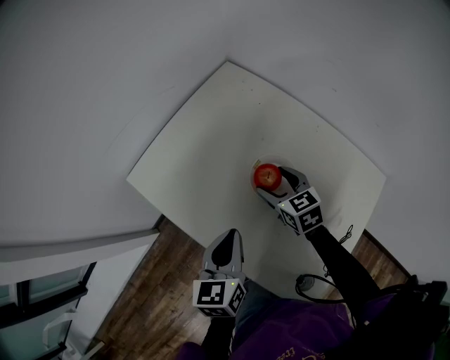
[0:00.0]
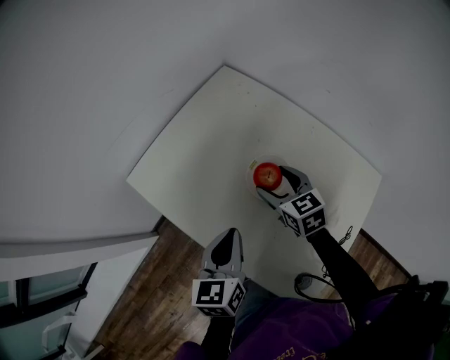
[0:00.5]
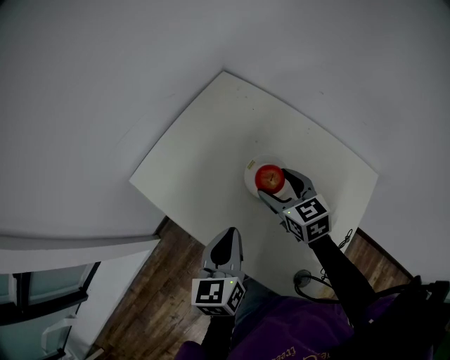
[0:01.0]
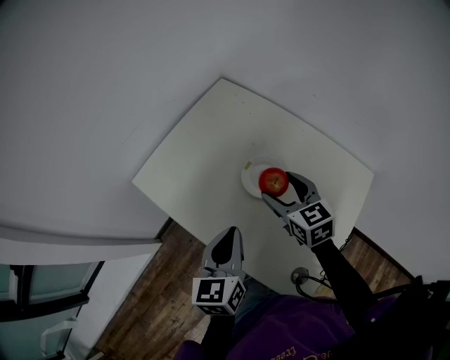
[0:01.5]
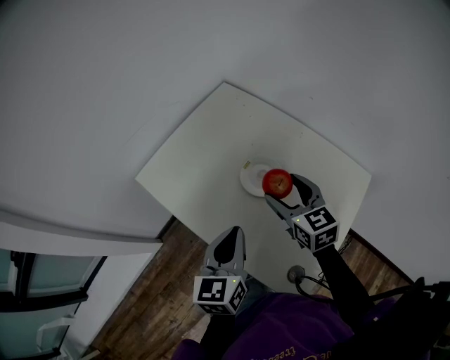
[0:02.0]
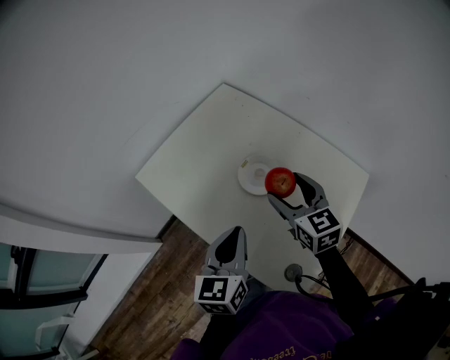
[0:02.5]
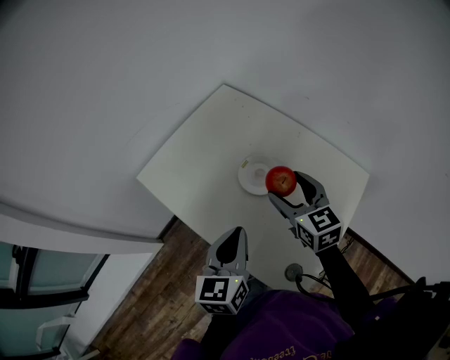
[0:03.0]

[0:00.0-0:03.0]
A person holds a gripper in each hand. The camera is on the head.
0:00.0 to 0:01.5: The right gripper moves upward and backward, some 10 cm. Meanwhile the left gripper moves roughly 5 cm.
0:01.5 to 0:03.0: The right gripper moves about 5 cm.

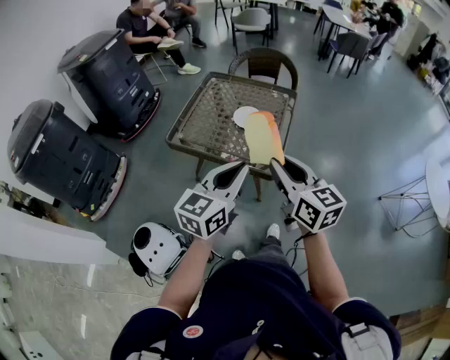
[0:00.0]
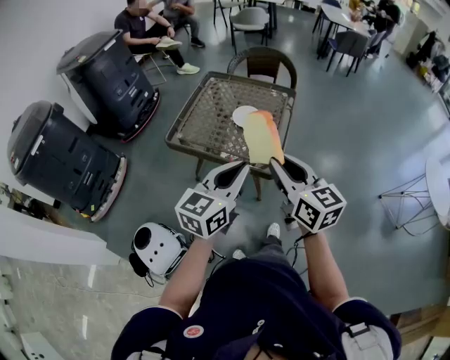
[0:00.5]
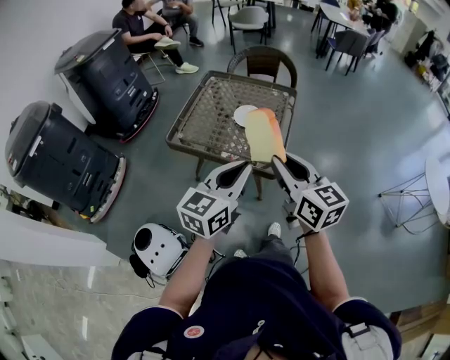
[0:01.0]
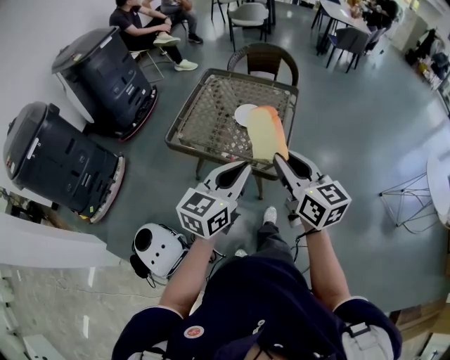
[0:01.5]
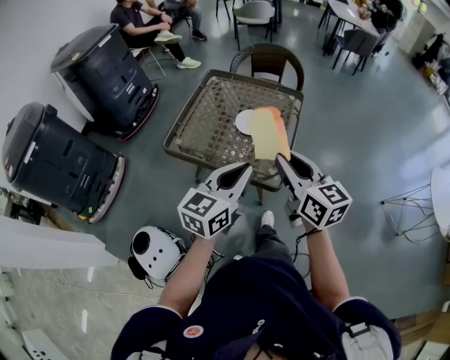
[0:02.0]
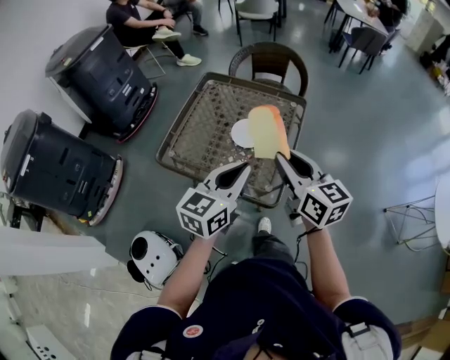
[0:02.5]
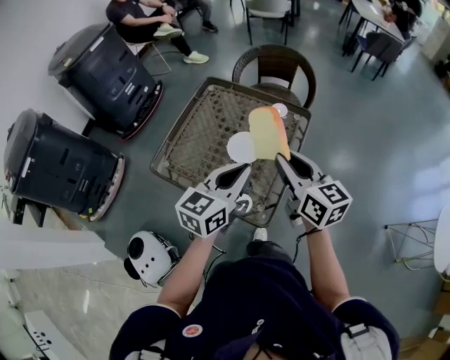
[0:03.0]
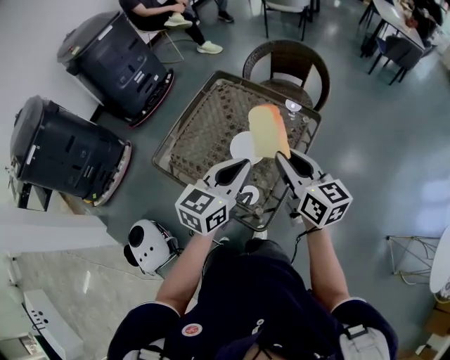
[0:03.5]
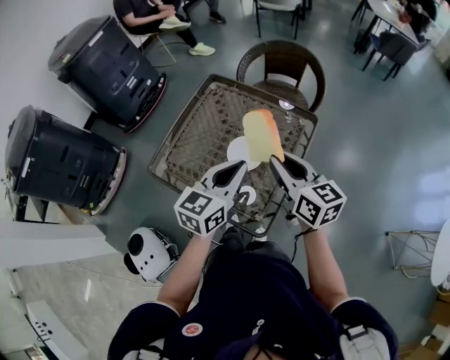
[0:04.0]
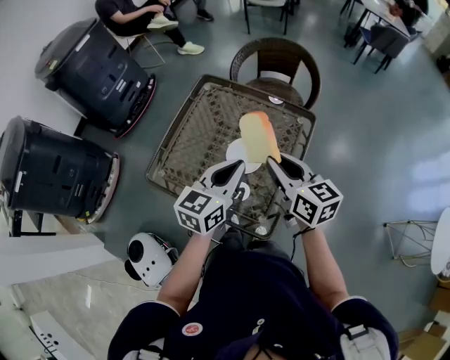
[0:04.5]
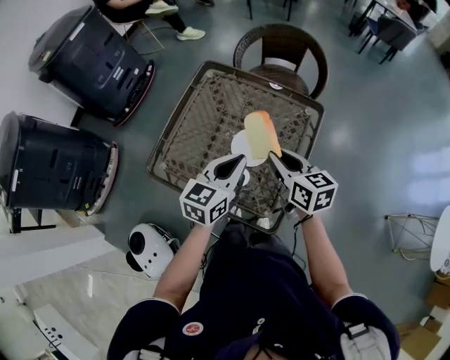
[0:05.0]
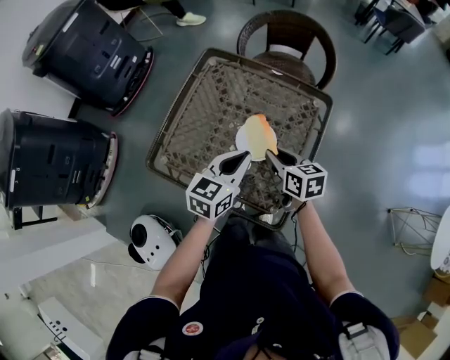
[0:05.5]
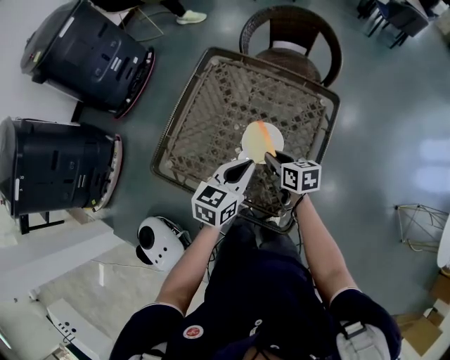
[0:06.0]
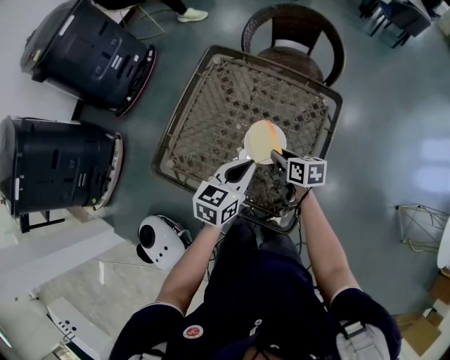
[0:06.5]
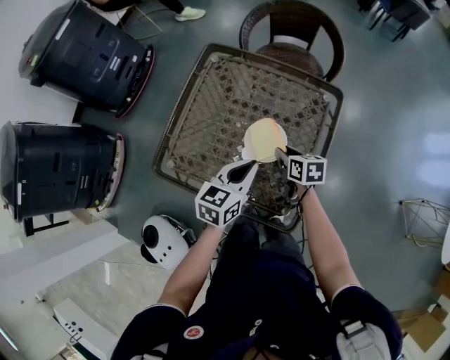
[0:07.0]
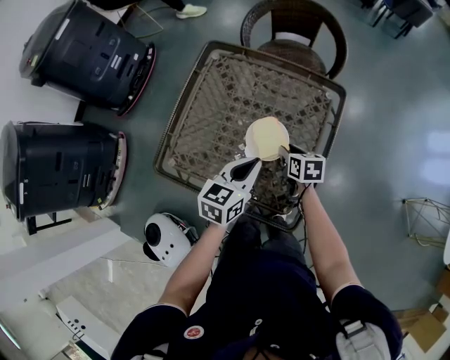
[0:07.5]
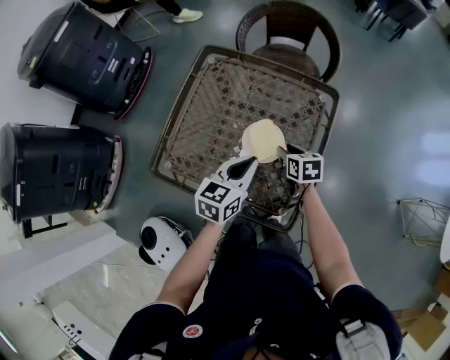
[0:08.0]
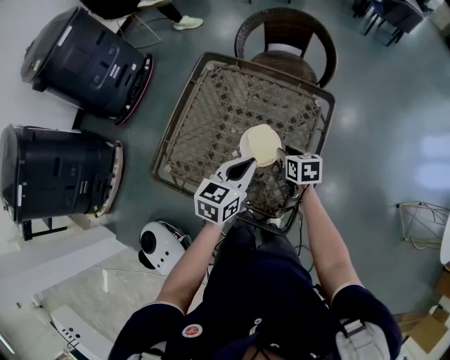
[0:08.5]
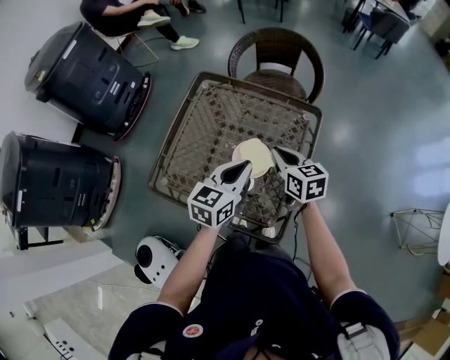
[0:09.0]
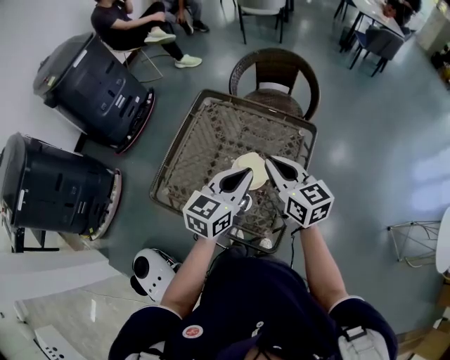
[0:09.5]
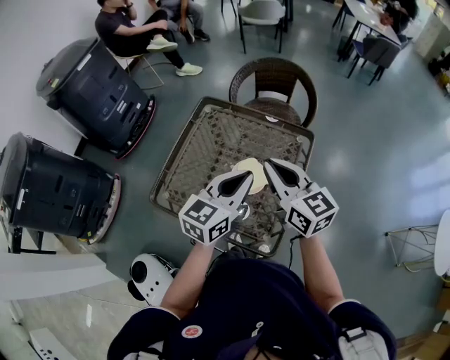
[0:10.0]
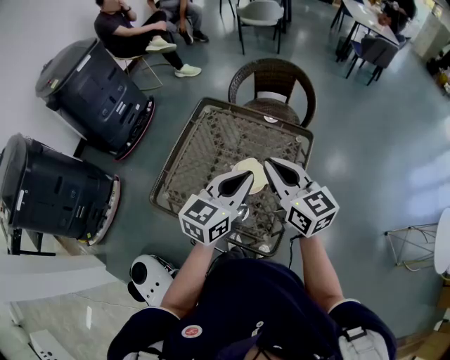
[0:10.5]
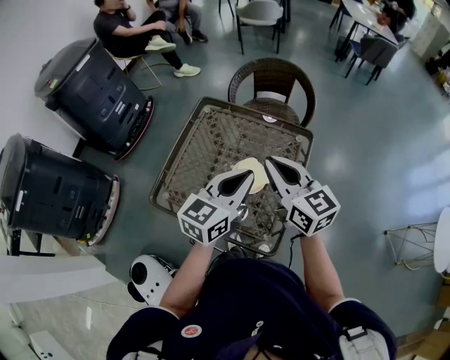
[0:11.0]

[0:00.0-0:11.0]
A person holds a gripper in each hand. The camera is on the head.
0:00.0 to 0:02.0: Both grippers travel together forward, some 10 cm.
0:02.0 to 0:03.5: Both grippers move forward, approximately 25 cm.
0:03.5 to 0:05.5: The right gripper goes roughly 20 cm downward, and changes its angle by about 30 degrees. The left gripper is displaced downward, forward and to the left by some 15 cm.
0:05.5 to 0:07.5: The right gripper shifts approximately 10 cm downward.
0:07.5 to 0:09.0: The left gripper is displaced upward by about 5 cm. The right gripper travels upward by approximately 15 cm, turns by about 20 degrees, and closes its fingers.
0:09.0 to 0:11.0: The right gripper is displaced upward by approximately 20 cm, and turns by some 30 degrees, while the left gripper goes about 10 cm upward.

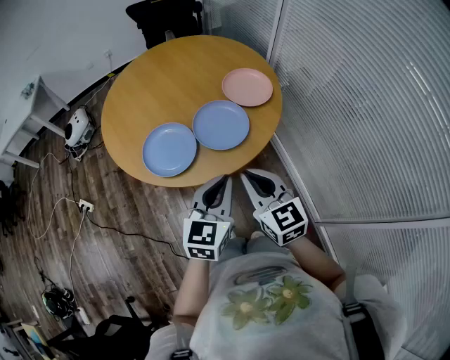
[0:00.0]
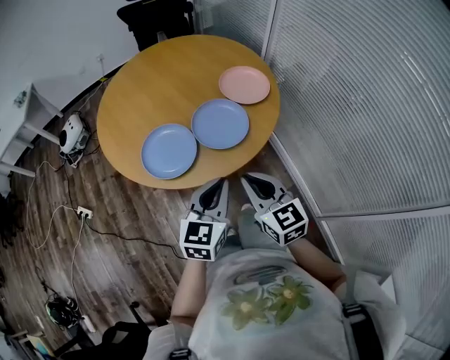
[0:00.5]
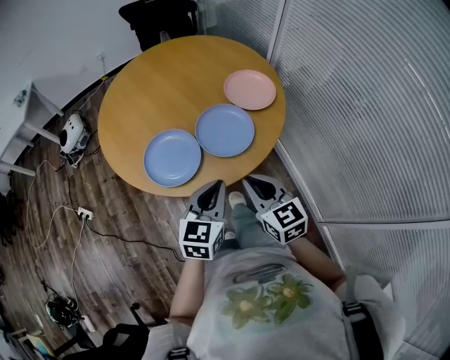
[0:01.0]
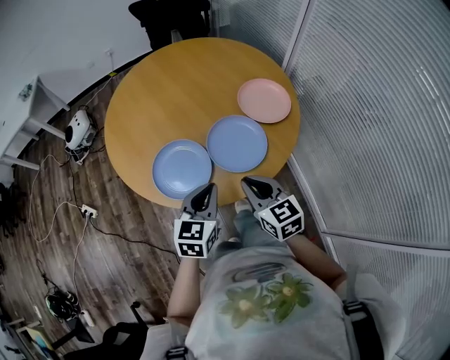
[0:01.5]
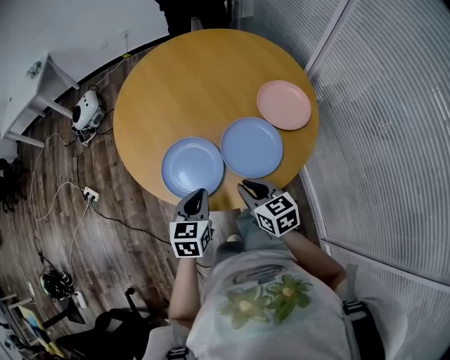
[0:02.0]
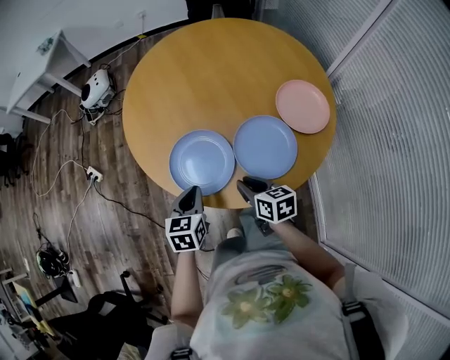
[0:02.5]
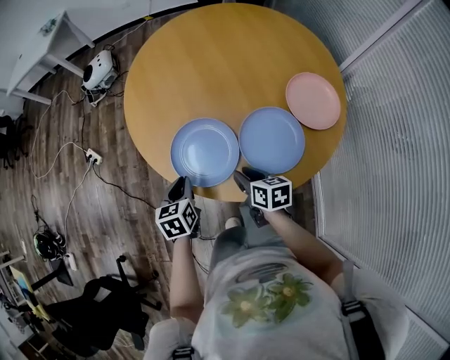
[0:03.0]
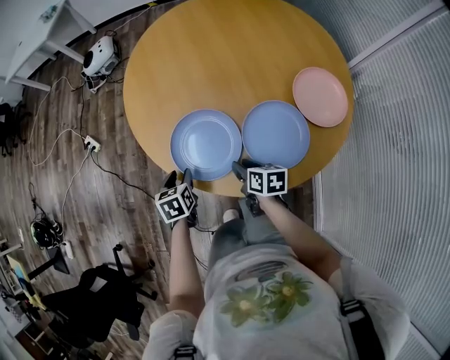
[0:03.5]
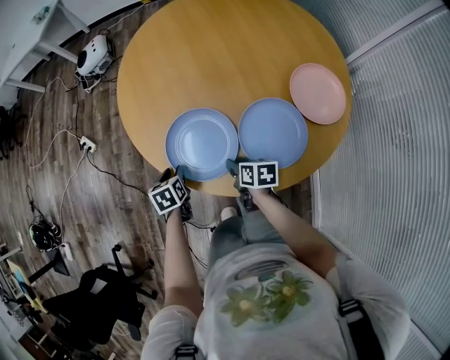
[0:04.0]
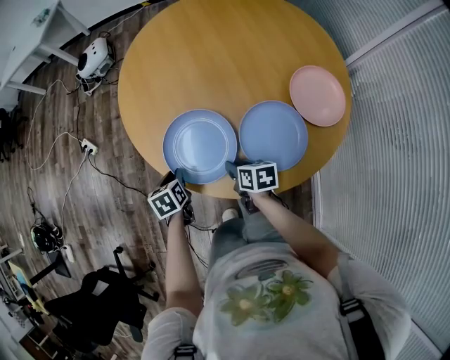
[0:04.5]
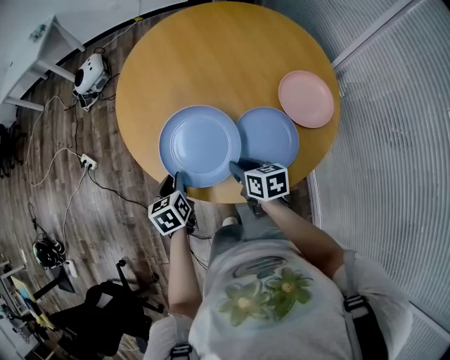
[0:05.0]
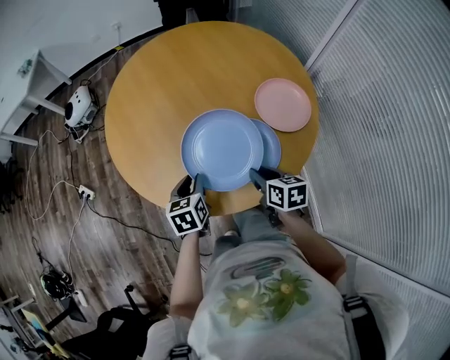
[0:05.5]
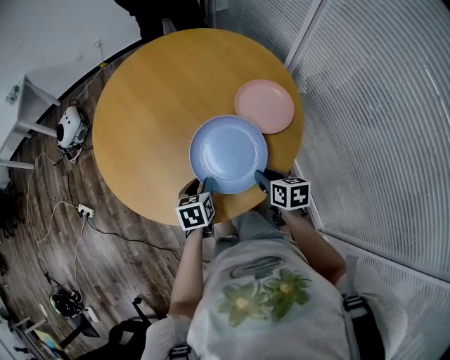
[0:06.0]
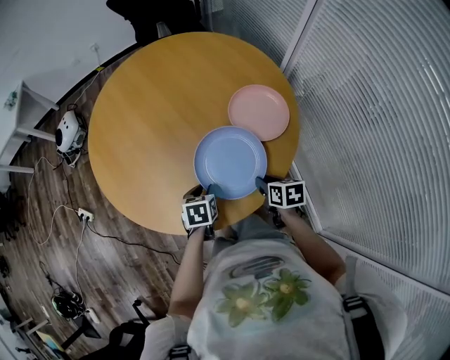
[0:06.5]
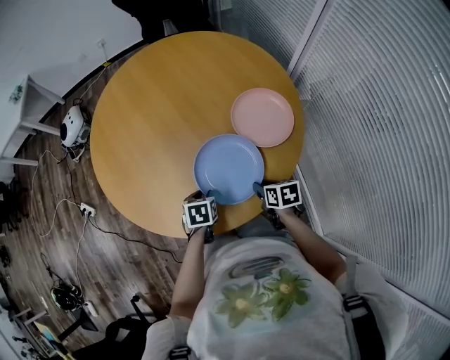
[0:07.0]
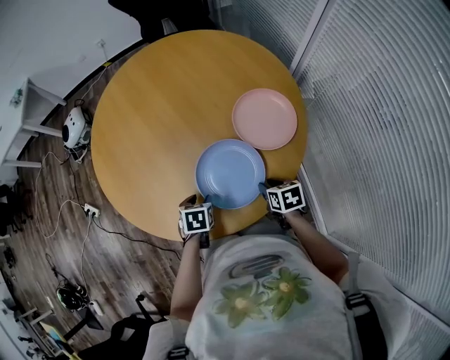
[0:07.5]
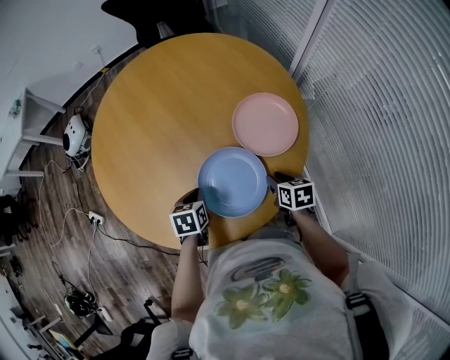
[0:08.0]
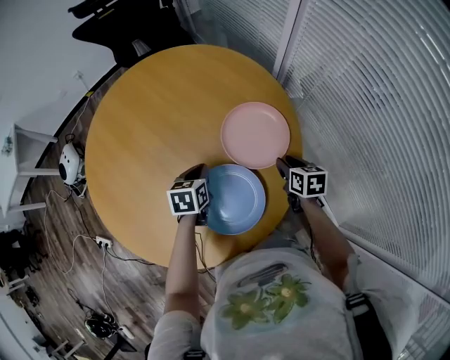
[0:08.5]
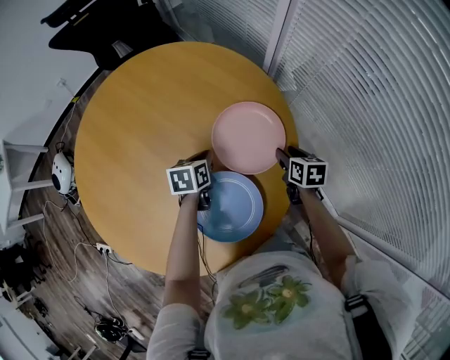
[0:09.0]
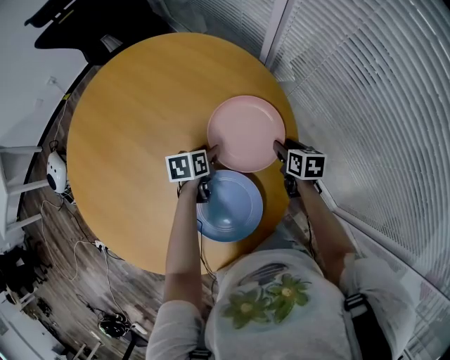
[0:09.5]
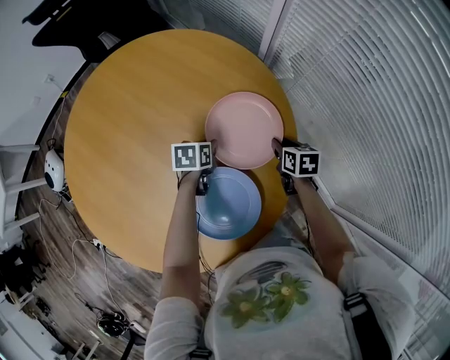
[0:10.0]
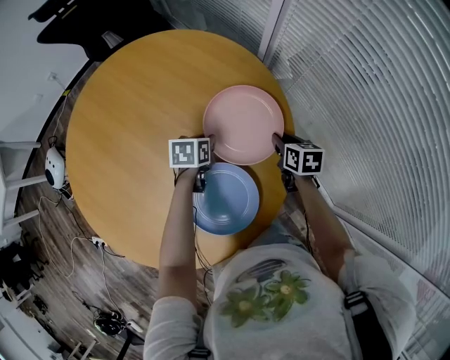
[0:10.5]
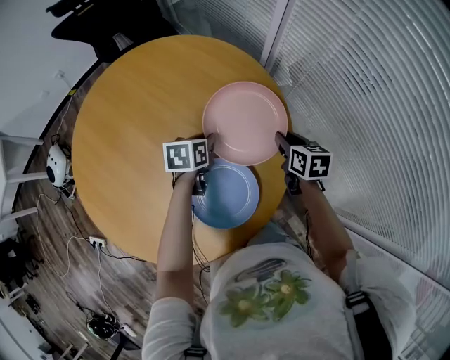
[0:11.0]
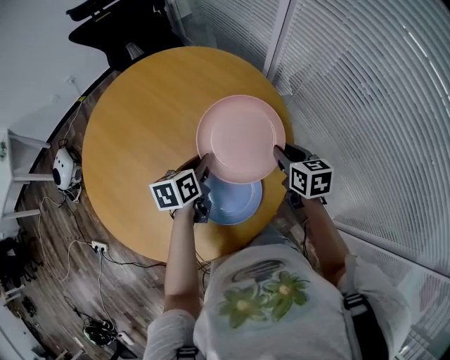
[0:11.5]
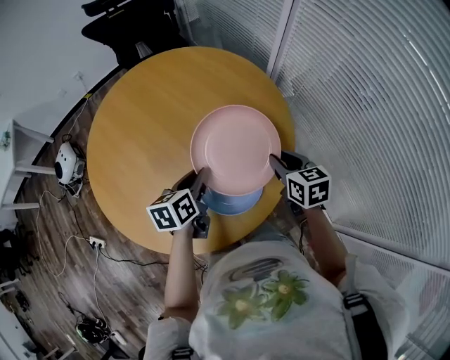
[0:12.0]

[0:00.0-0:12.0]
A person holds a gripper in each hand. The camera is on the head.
0:00.0 to 0:02.0: The left gripper goes roughly 25 cm forward, to the left and downward, and rotates about 30 degrees, while the right gripper heads forward, downward and to the left, covering roughly 25 cm, and rotates roughly 30 degrees.
0:02.0 to 0:04.0: The left gripper is displaced downward, to the left and forward by approximately 25 cm, rotates approximately 40 degrees, and opens; the right gripper shifts approximately 20 cm downward and forward, turns by roughly 30 degrees, and opens.
0:04.0 to 0:06.0: The left gripper moves roughly 25 cm, and swivels some 30 degrees, while the right gripper shifts by approximately 25 cm, and swivels approximately 20 degrees.
0:06.0 to 0:08.0: The right gripper moves to the right, forward and downward, about 15 cm, while the left gripper shifts about 10 cm forward, and closes up.
0:08.0 to 0:10.0: The left gripper changes place by some 30 cm, rotates approximately 30 degrees, and opens and closes again; the right gripper ends up about 20 cm from where it was, and swivels roughly 20 degrees.
0:10.0 to 0:12.0: The grippers both shift upward and backward by some 30 cm. The left gripper changes its angle by approximately 30 degrees. The right gripper turns by about 20 degrees.
